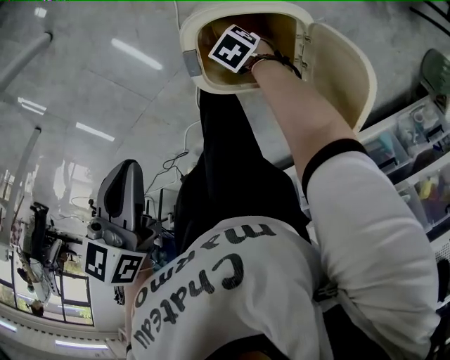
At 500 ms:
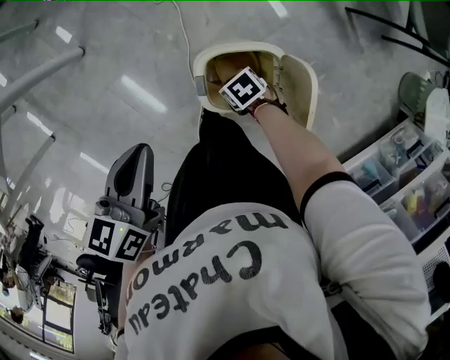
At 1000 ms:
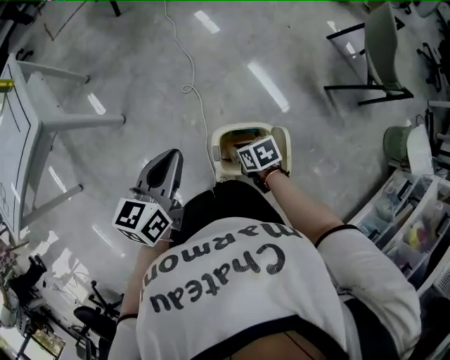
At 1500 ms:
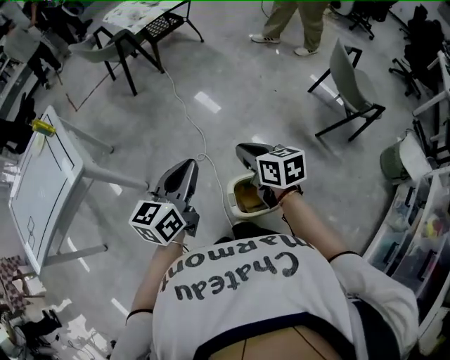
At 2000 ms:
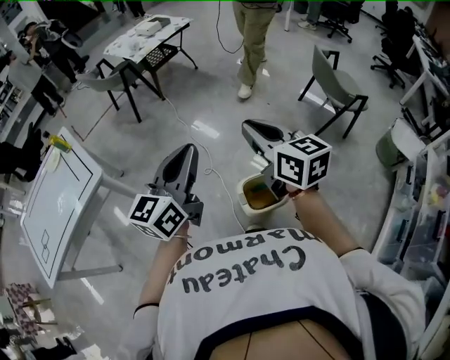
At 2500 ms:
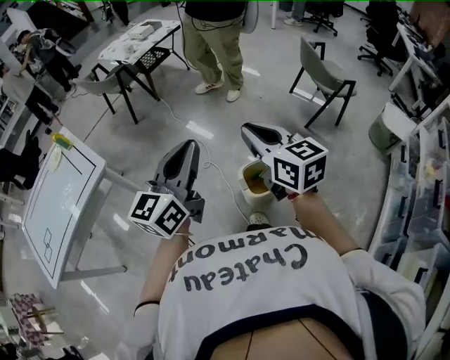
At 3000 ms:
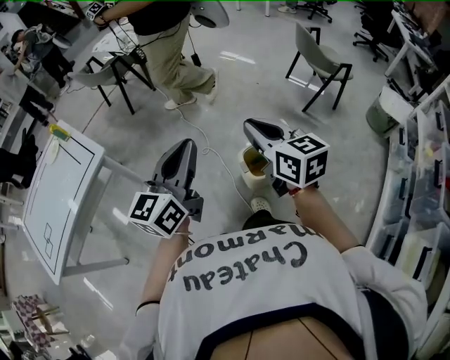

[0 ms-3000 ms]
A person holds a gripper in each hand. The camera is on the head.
0 ms to 1500 ms: The right gripper travels upward by about 60 cm, and tips its fingers upward by some 40 degrees; the left gripper shifts about 35 cm upward, and tilts its fingers approximately 40 degrees upward.
1500 ms to 3000 ms: The two grippers go some 25 cm backward and upward. The right gripper turns by about 30 degrees.

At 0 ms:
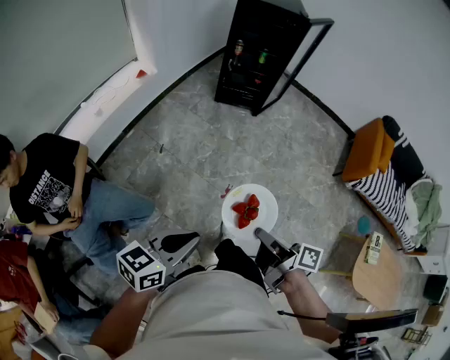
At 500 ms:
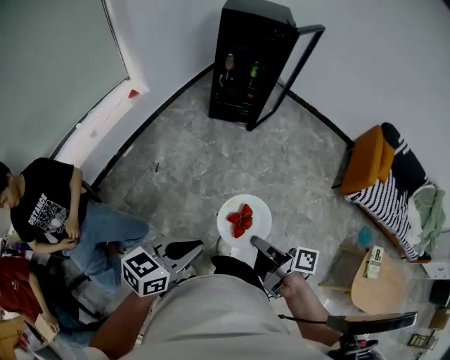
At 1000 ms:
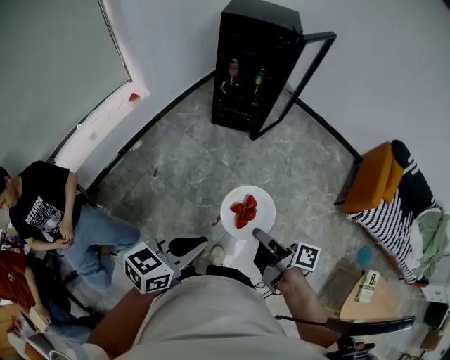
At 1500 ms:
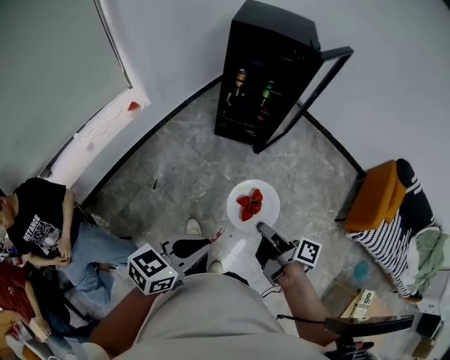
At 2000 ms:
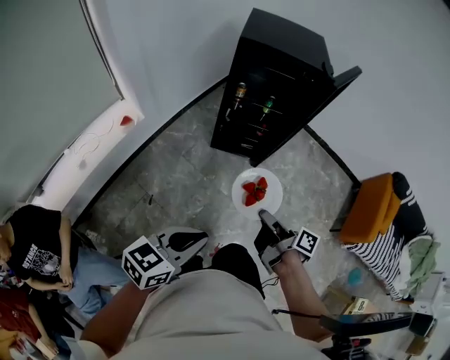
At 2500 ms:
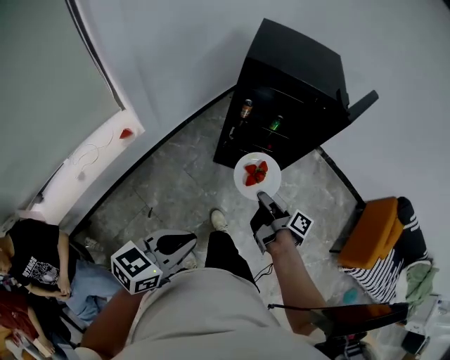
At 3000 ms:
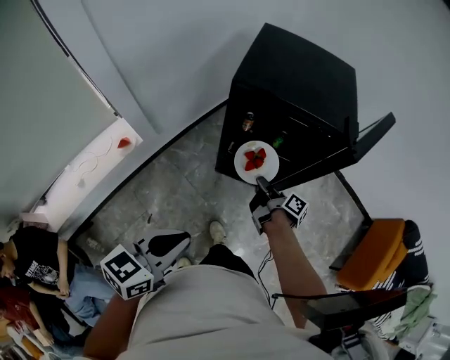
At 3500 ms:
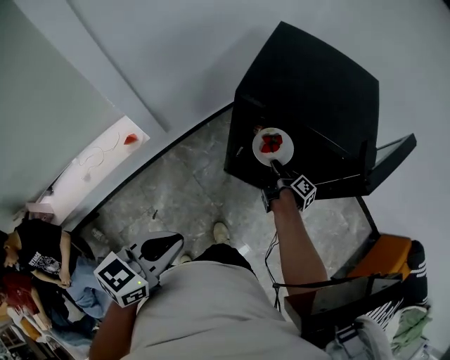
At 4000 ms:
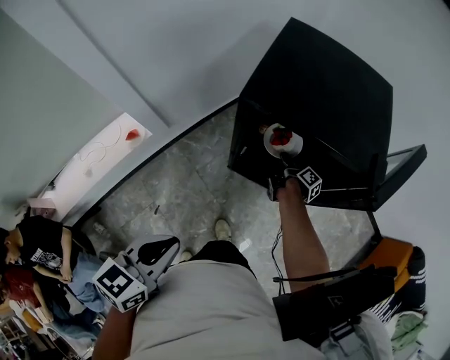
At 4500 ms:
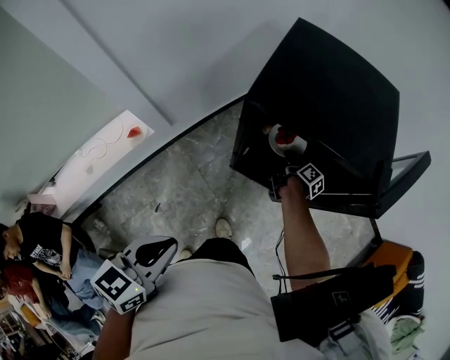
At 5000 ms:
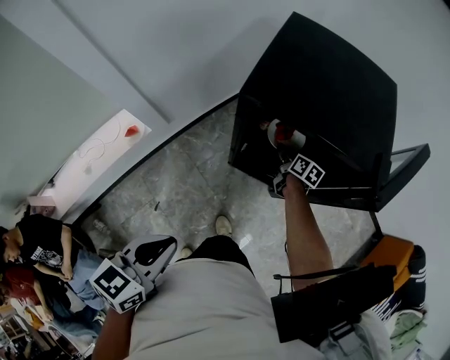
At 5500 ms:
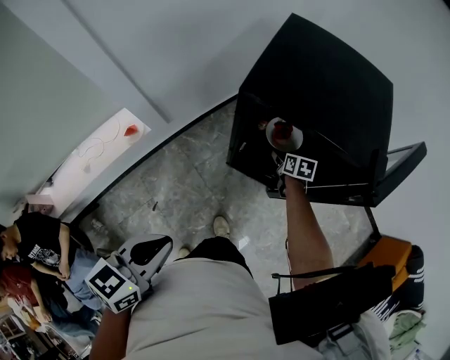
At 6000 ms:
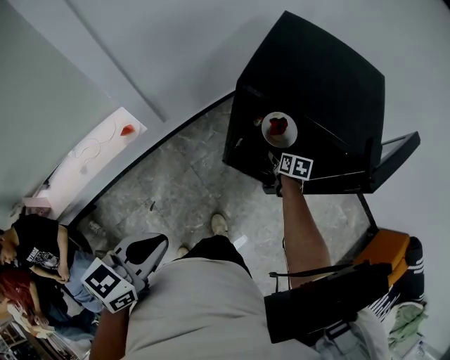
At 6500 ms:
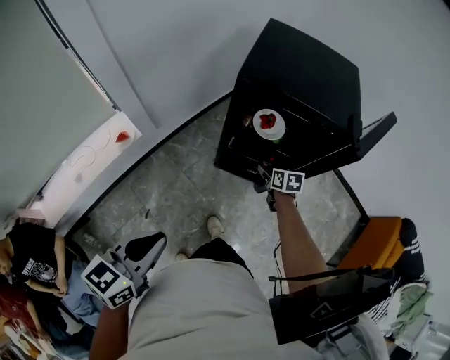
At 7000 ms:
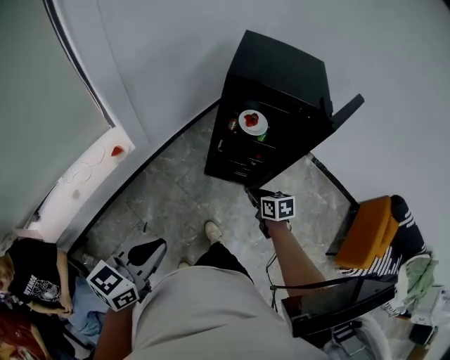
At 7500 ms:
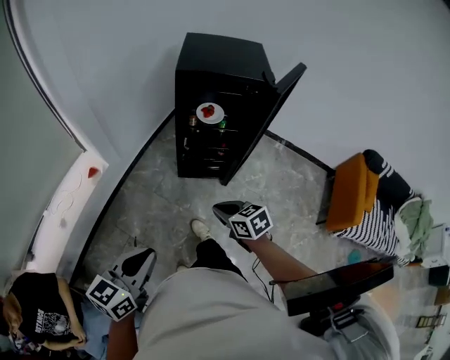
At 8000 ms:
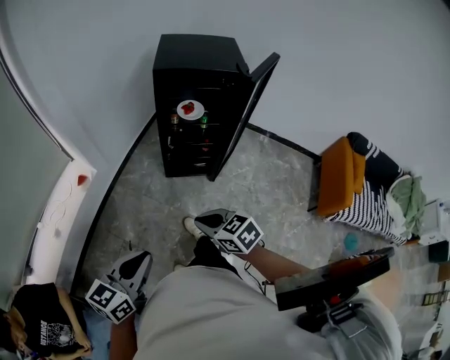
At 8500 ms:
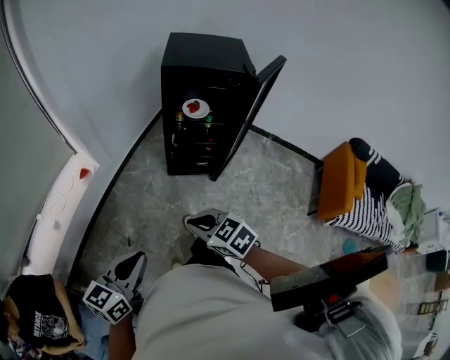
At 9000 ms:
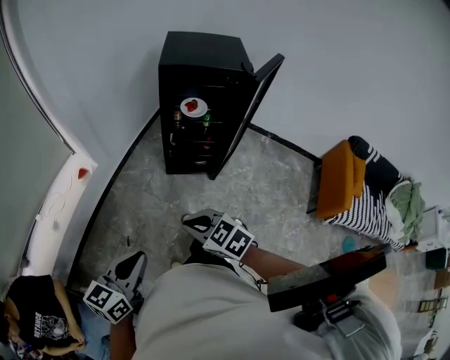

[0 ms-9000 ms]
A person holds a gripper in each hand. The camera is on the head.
0 ms to 2000 ms: Both grippers are carried forward, roughly 50 cm.
2000 ms to 4500 ms: The left gripper moves forward, roughly 30 cm, and rotates some 30 degrees; the right gripper moves forward, some 60 cm.
4500 ms to 7000 ms: The right gripper goes some 35 cm backward, rotates around the line of its fingers by approximately 60 degrees, counterclockwise from behind, and opens, then closes again. The left gripper travels backward by approximately 15 cm.
7000 ms to 9000 ms: The right gripper heads backward, to the left and upward, covering approximately 35 cm, and swivels some 30 degrees. Meanwhile the left gripper moves backward, approximately 10 cm.

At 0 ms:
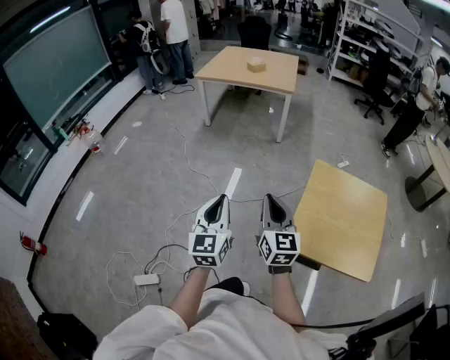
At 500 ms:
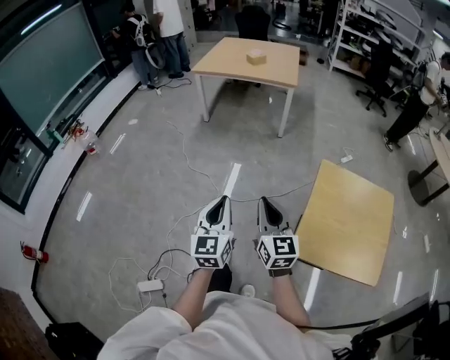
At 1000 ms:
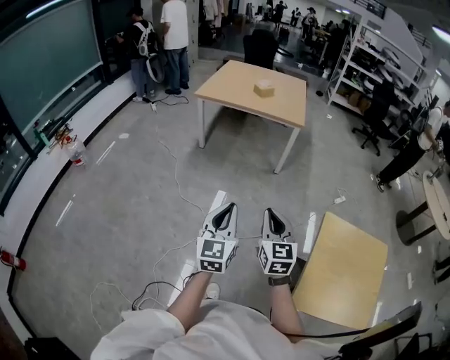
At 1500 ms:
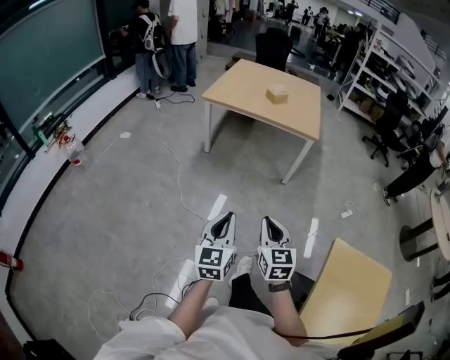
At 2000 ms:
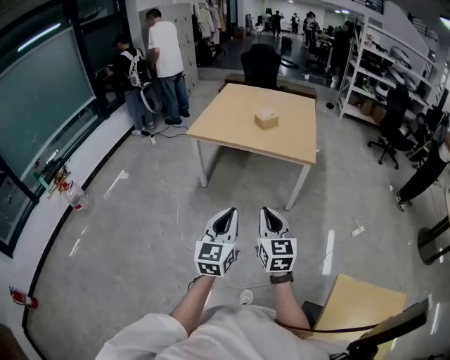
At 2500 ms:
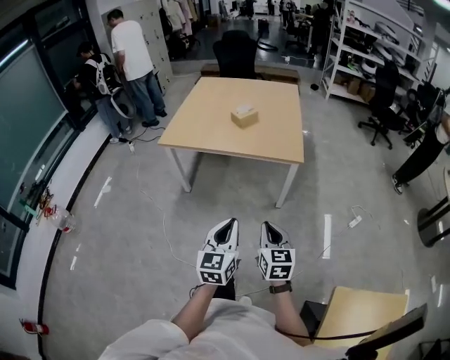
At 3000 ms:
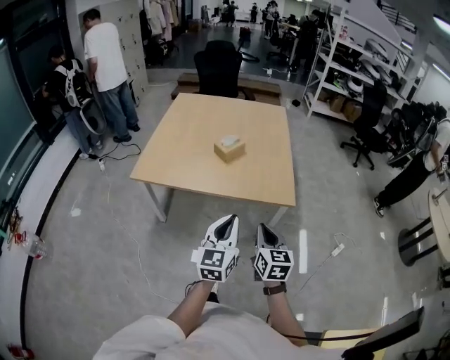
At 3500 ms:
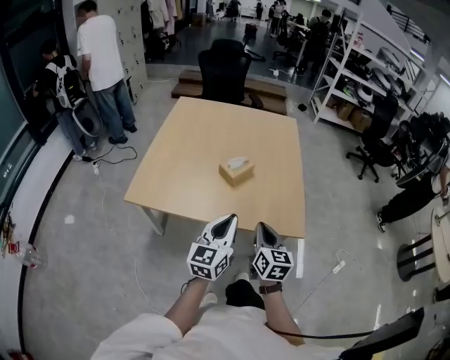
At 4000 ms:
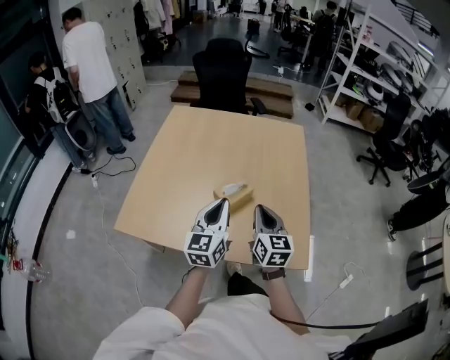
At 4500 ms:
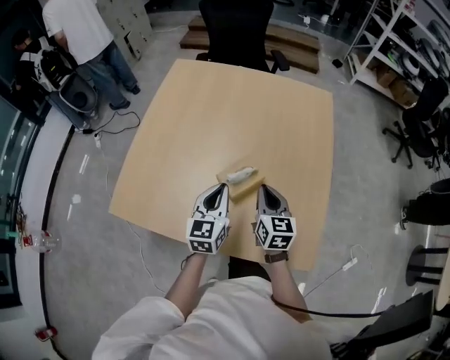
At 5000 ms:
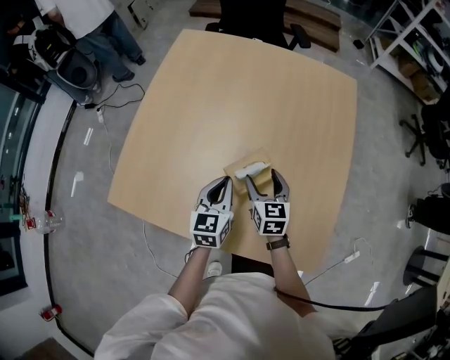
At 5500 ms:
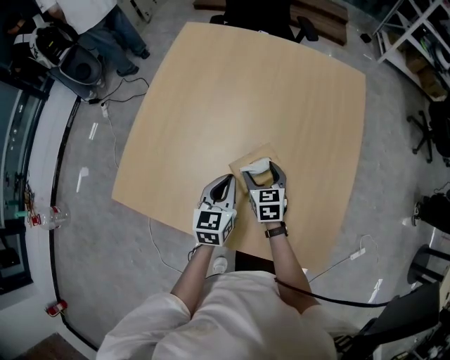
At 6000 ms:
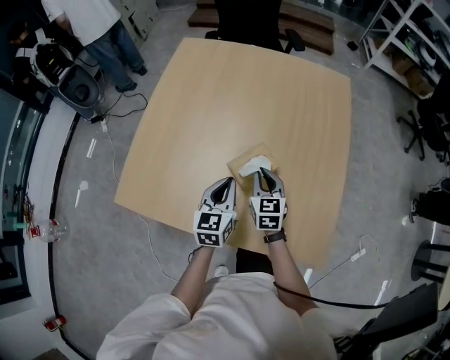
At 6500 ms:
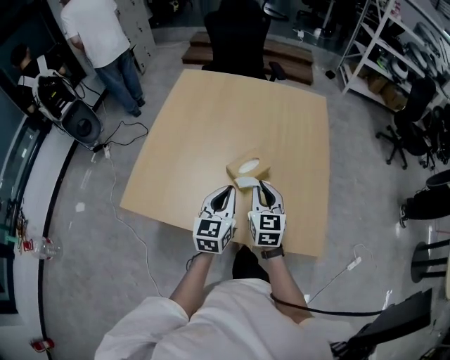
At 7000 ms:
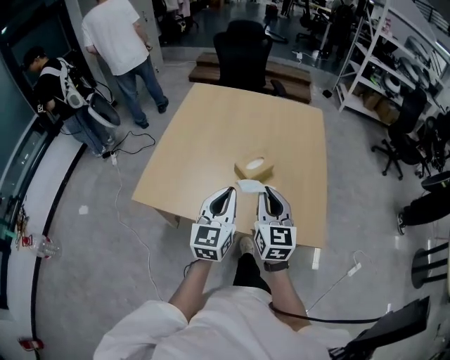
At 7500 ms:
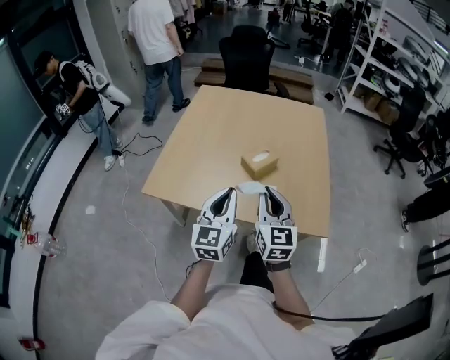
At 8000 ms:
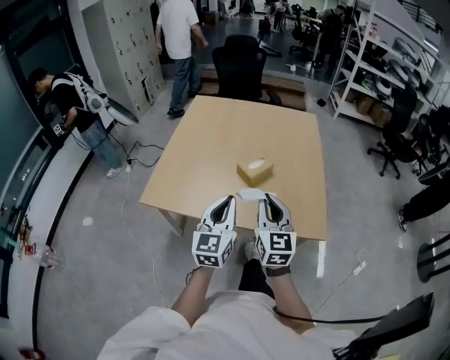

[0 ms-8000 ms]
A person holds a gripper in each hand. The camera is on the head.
0 ms to 2000 ms: The pair of grippers is taken forward, roughly 70 cm.
2000 ms to 4000 ms: The two grippers travel together, forward, some 80 cm.
4000 ms to 6000 ms: The left gripper is displaced downward and forward by about 20 cm, and swivels roughly 20 degrees. Meanwhile the right gripper is displaced forward and downward by approximately 25 cm, changes its angle by about 20 degrees, and opens, then closes again.
6000 ms to 8000 ms: Both grippers move backward and upward, about 35 cm. The left gripper rotates approximately 20 degrees. Meanwhile the right gripper changes its angle by roughly 30 degrees.

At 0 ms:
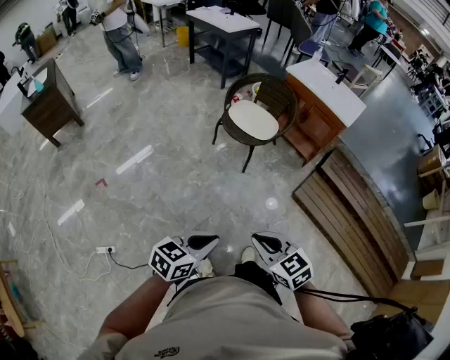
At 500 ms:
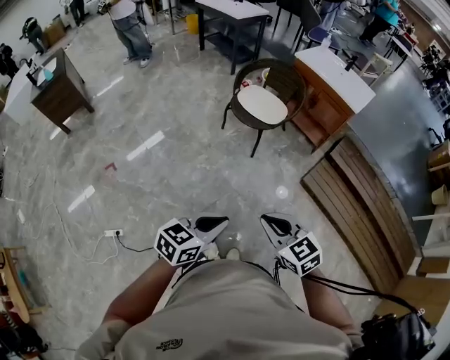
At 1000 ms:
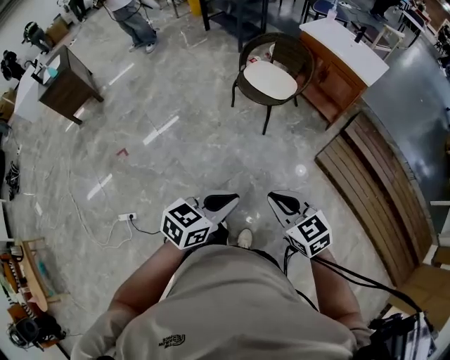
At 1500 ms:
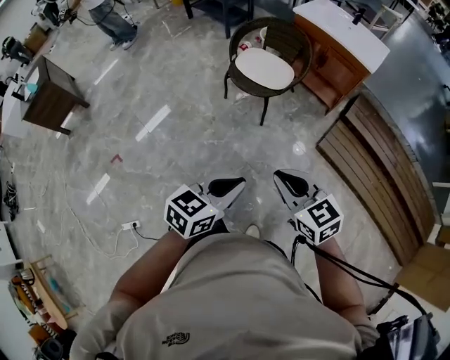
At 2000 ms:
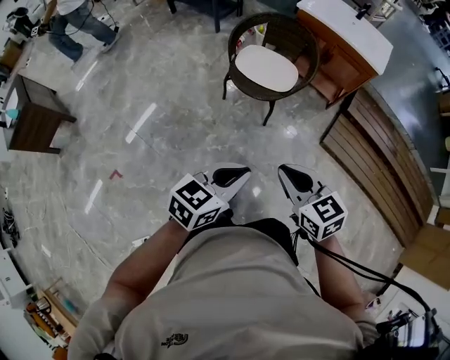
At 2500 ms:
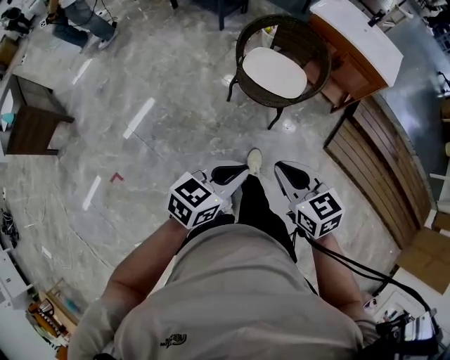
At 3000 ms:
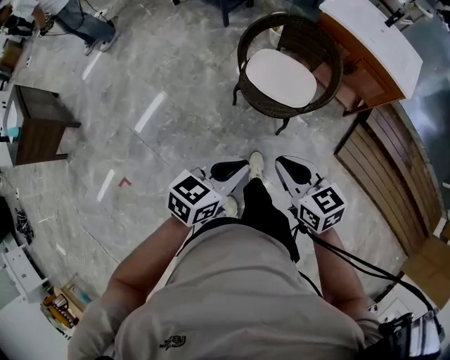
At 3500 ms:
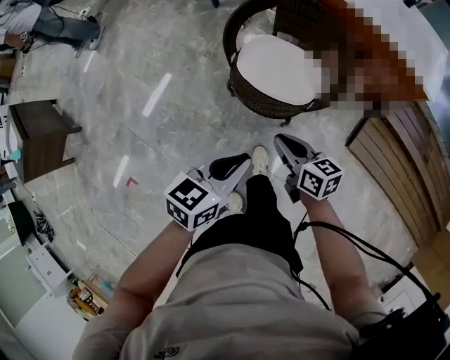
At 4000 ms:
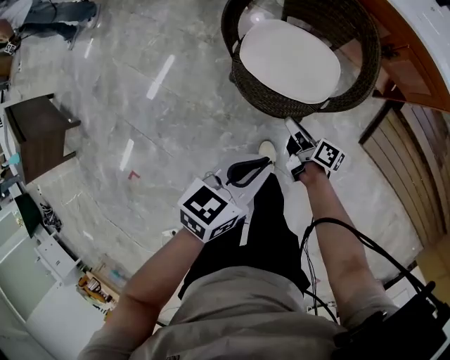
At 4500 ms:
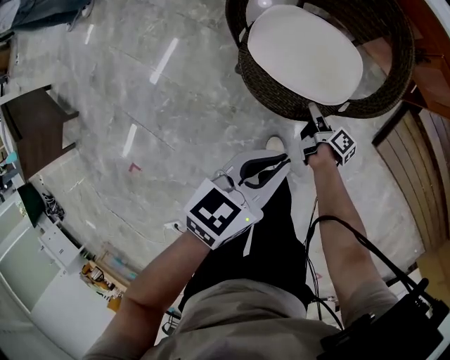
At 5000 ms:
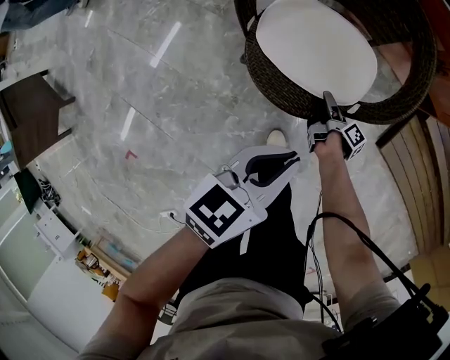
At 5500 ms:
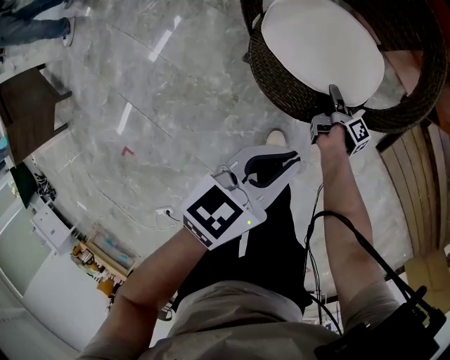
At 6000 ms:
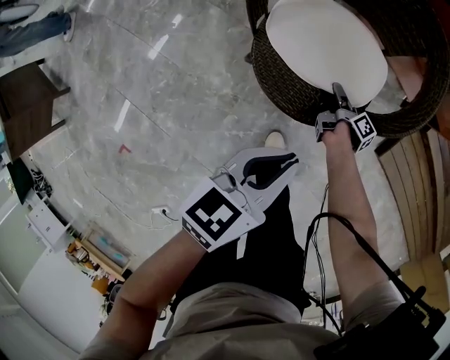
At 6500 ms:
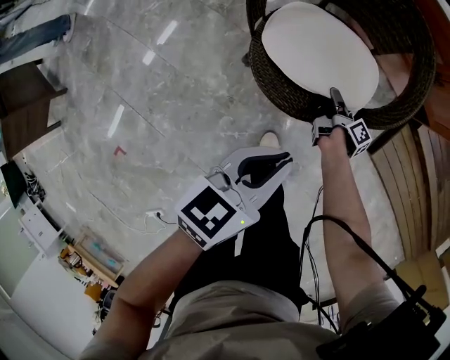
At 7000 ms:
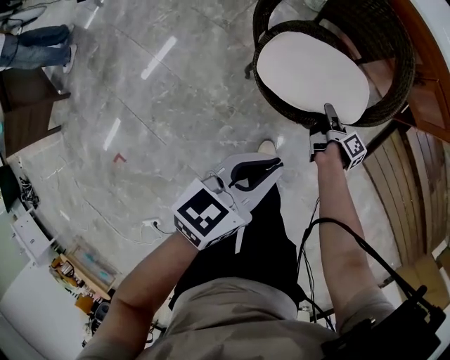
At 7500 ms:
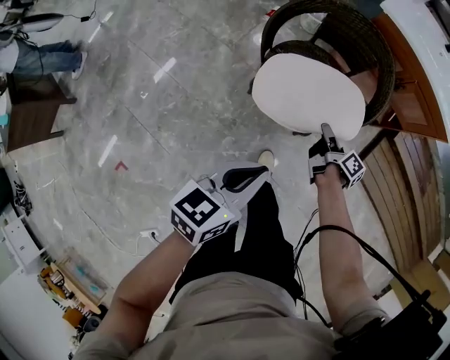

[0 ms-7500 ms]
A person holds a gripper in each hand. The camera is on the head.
0 ms to 2000 ms: Both grippers travel together forward, approximately 25 cm. The right gripper turns by some 20 degrees.
2000 ms to 4000 ms: The two grippers travel together, forward, about 40 cm. The right gripper shifts approximately 40 cm downward, and rotates around the line of its fingers by about 70 degrees, clockwise from behind. Meanwhile the left gripper goes some 20 cm downward.
4000 ms to 5500 ms: The right gripper travels downward and forward by about 20 cm, and swivels some 40 degrees, while the left gripper goes roughly 10 cm downward and forward.
5500 ms to 7500 ms: The left gripper is displaced backward and upward by roughly 20 cm. Meanwhile the right gripper is displaced upward and backward by about 25 cm, changes its angle by approximately 20 degrees, and closes.
